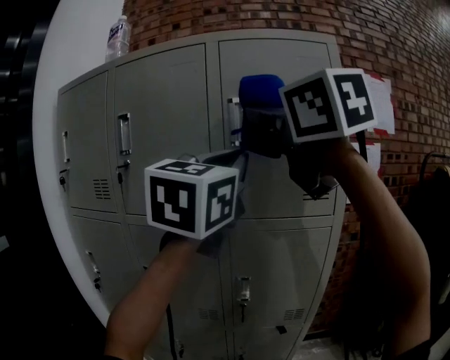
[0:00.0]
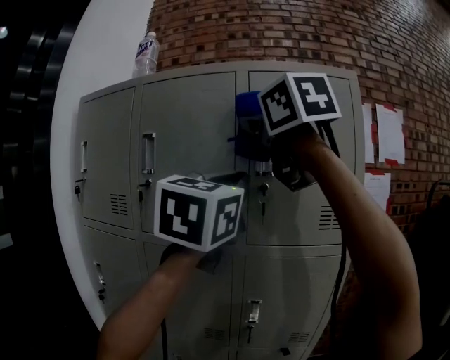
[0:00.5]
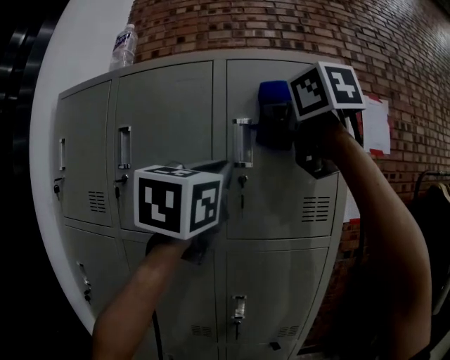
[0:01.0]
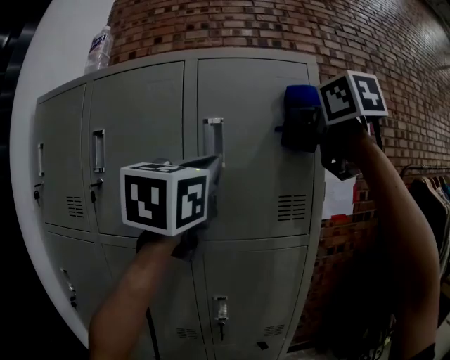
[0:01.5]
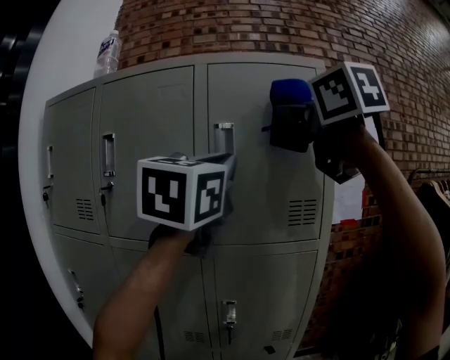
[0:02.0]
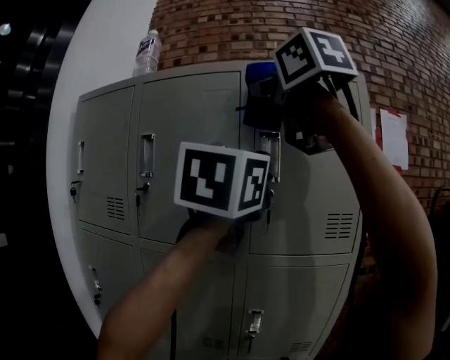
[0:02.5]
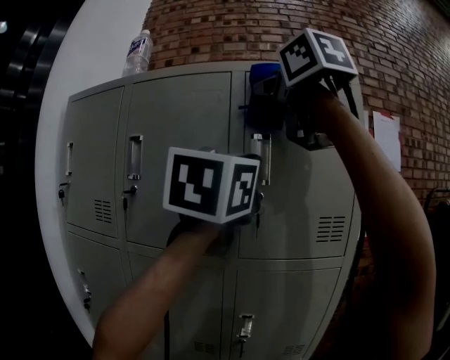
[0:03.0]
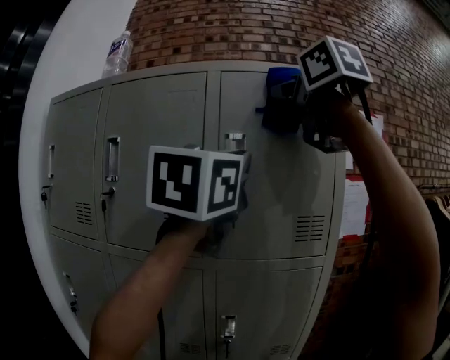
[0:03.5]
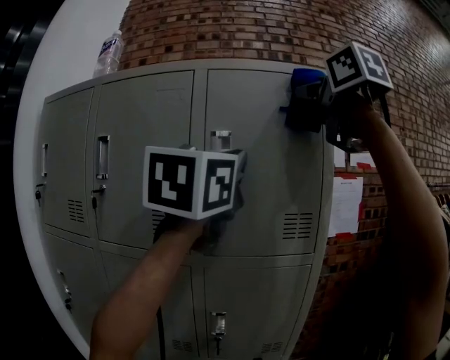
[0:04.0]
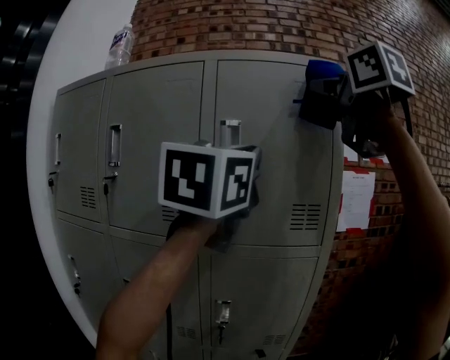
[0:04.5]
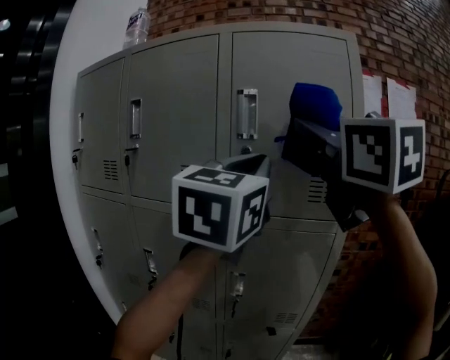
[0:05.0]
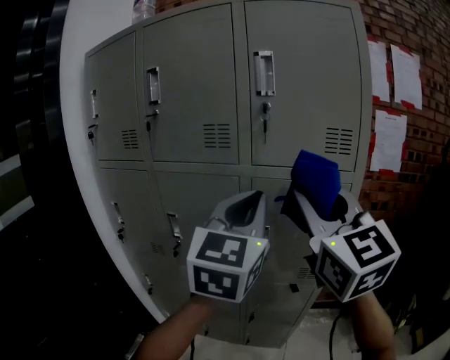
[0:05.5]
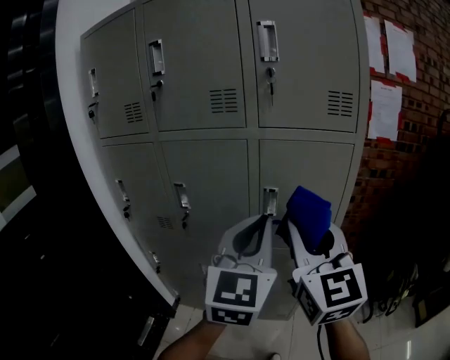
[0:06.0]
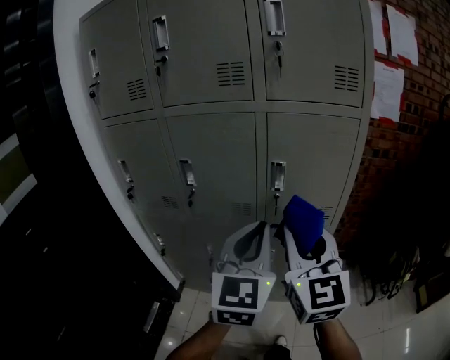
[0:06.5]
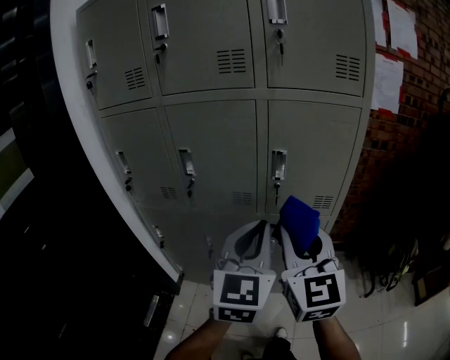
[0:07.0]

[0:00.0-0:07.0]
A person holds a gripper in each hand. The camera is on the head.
0:00.0 to 0:02.0: The right gripper moves left and right over about 20 cm, changing direction 2 times.
0:02.0 to 0:03.5: The right gripper goes about 5 cm upward, and moves some 15 cm to the left and comes back.
0:03.5 to 0:05.0: The left gripper heads downward, covering roughly 10 cm; the right gripper is displaced downward and backward by roughly 15 cm.
0:05.0 to 0:07.0: The left gripper travels downward and backward by some 35 cm; the right gripper goes about 40 cm downward.

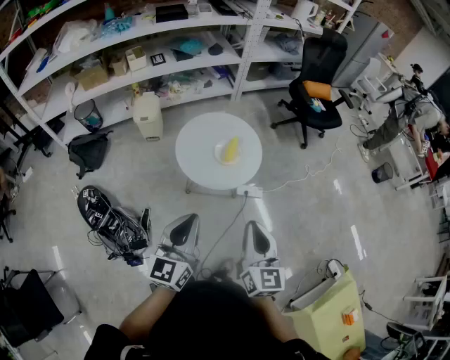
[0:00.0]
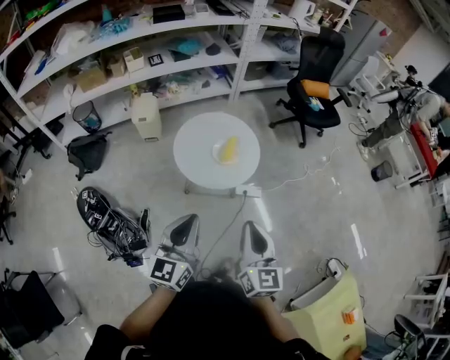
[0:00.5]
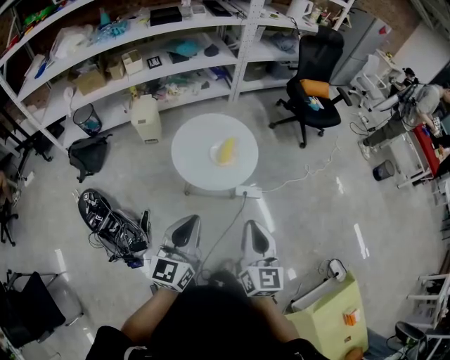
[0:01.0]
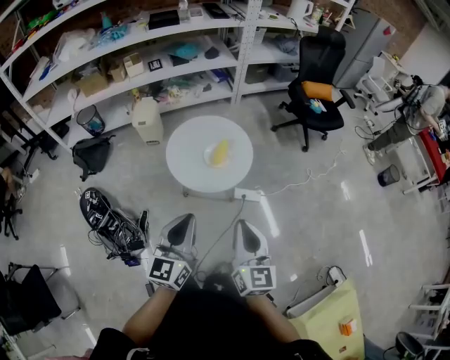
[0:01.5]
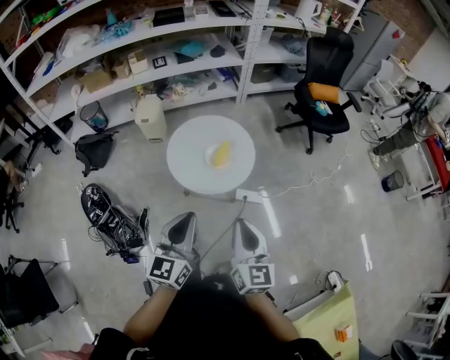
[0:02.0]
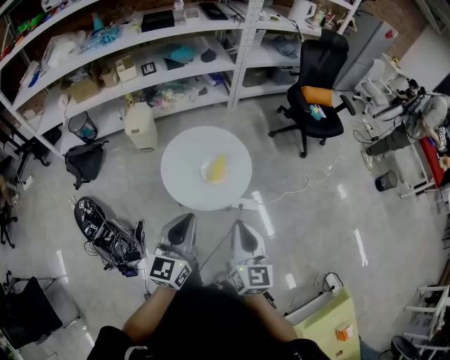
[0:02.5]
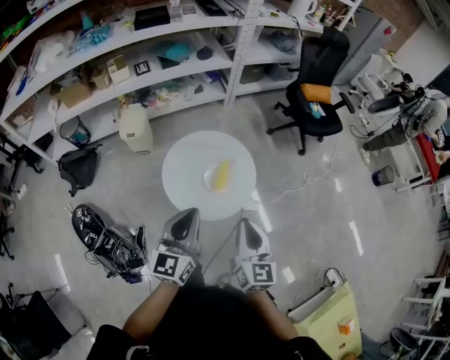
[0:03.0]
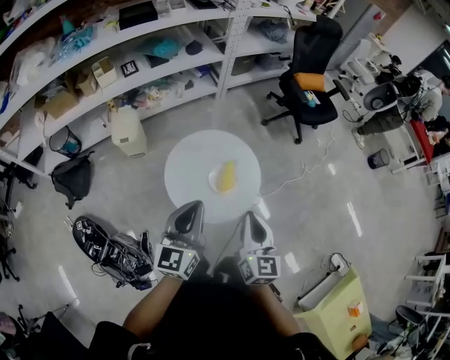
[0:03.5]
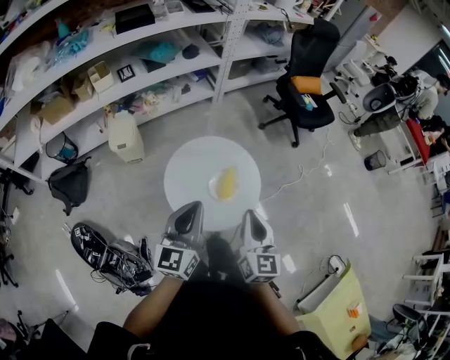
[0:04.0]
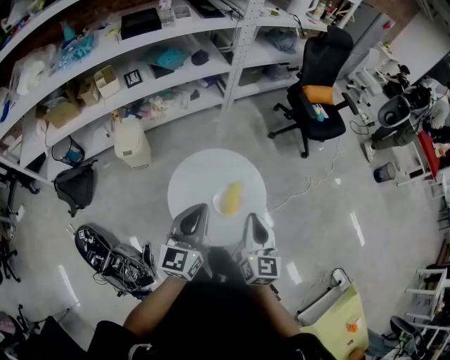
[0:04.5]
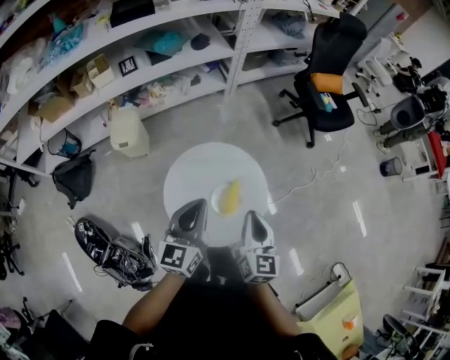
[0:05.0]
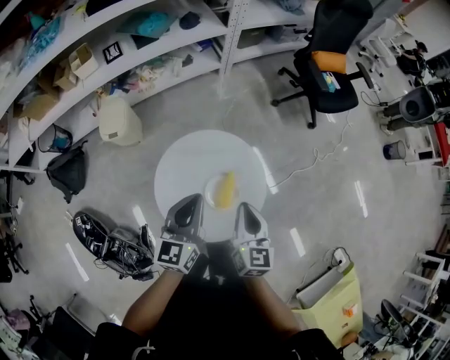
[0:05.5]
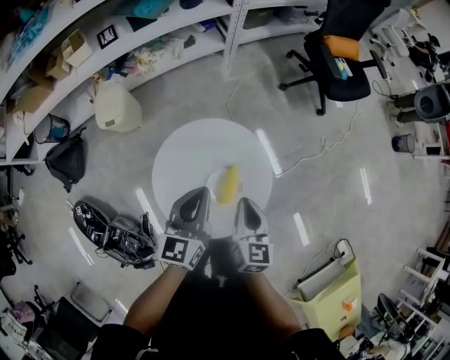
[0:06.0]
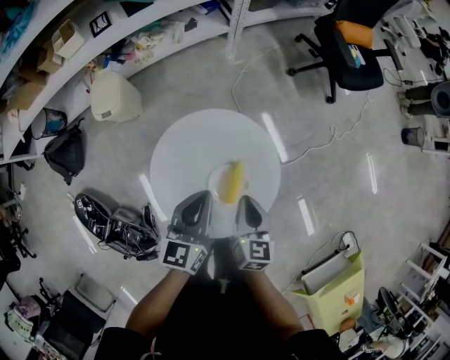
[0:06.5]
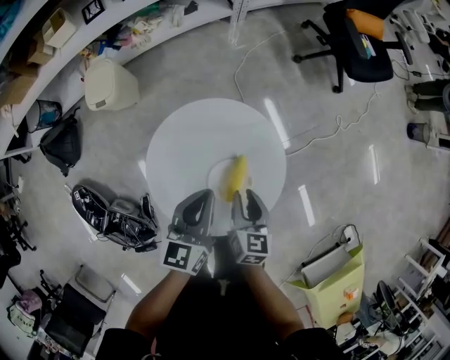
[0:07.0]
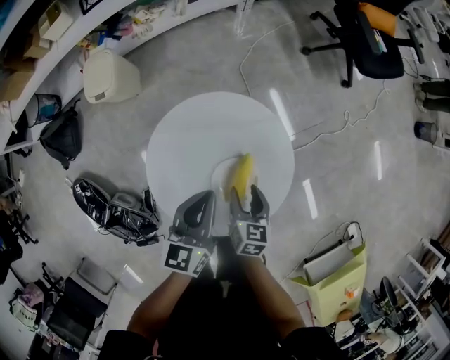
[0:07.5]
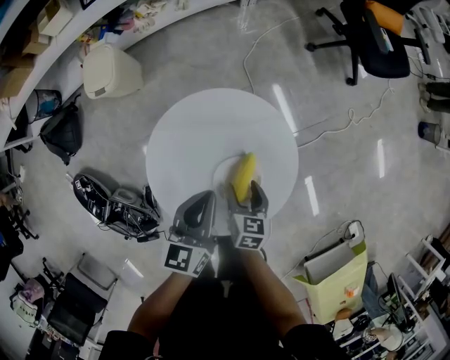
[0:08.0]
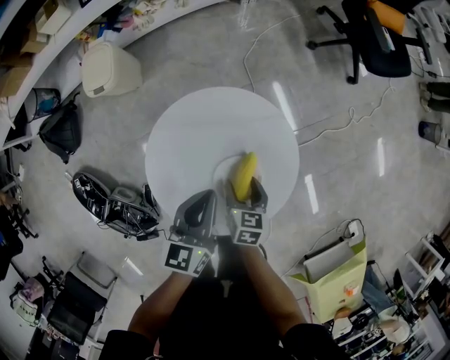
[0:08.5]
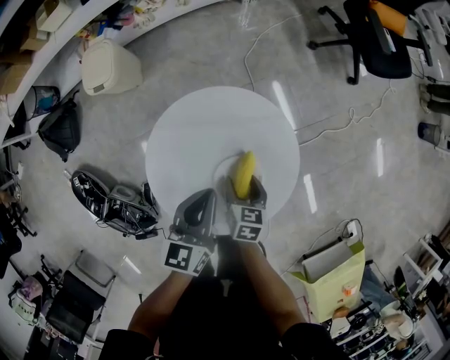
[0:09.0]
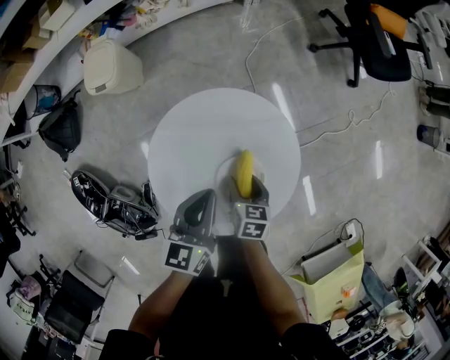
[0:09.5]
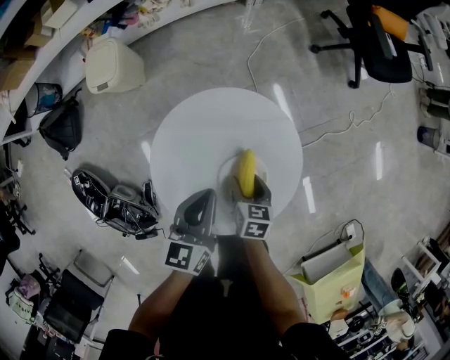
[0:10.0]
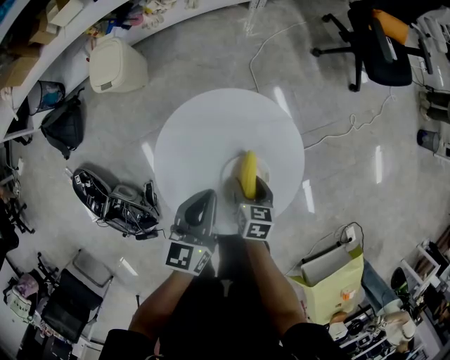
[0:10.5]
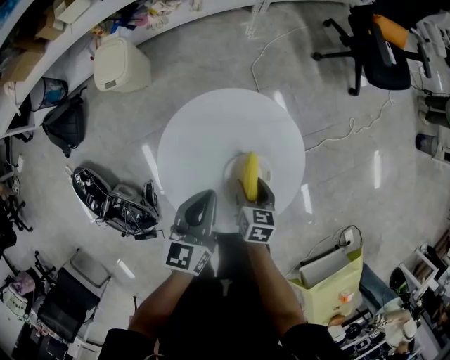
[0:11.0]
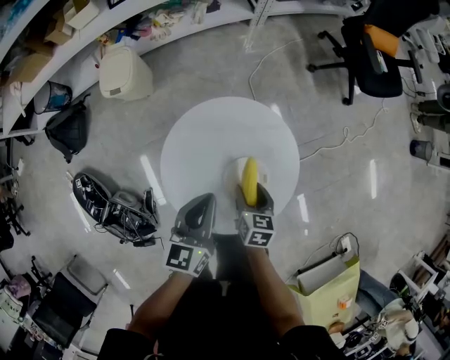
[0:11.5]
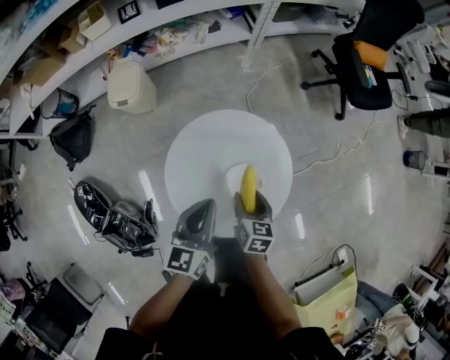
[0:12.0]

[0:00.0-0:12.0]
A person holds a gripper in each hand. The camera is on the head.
0:00.0 to 0:02.0: The right gripper is displaced to the right and forward by some 10 cm. The left gripper is displaced to the right by approximately 10 cm.
0:02.0 to 0:04.0: The grippers both shift forward and to the left by roughly 25 cm.
0:04.0 to 0:06.0: The left gripper moves forward and downward, about 20 cm. Meanwhile the right gripper goes some 25 cm downward and forward.
0:06.0 to 0:08.0: The left gripper goes roughly 15 cm downward; the right gripper heads downward, covering approximately 20 cm, swivels about 20 degrees, and opens up.
0:08.0 to 0:10.0: The grippers move only a little.
0:10.0 to 0:12.0: The two grippers go about 10 cm upward.

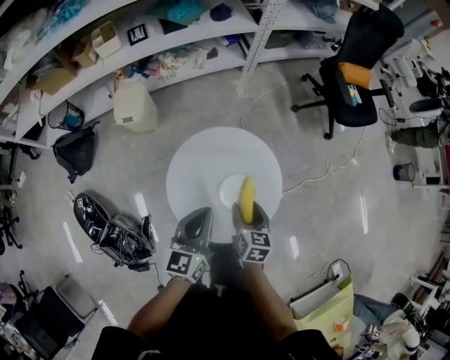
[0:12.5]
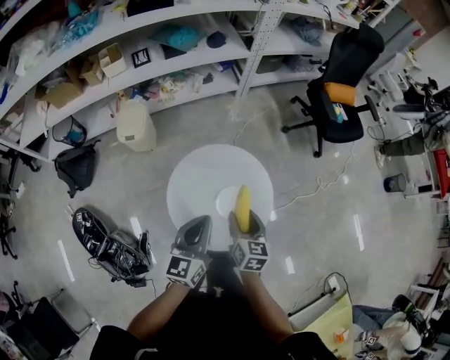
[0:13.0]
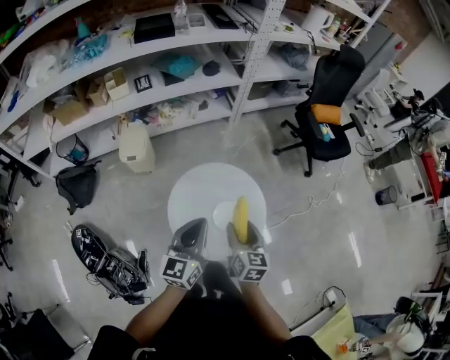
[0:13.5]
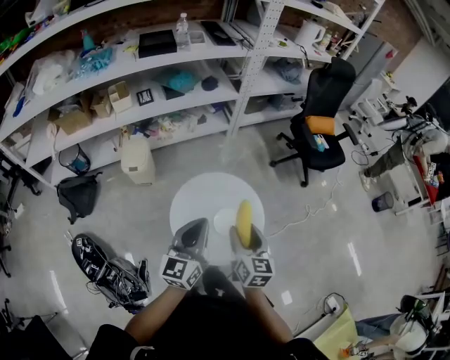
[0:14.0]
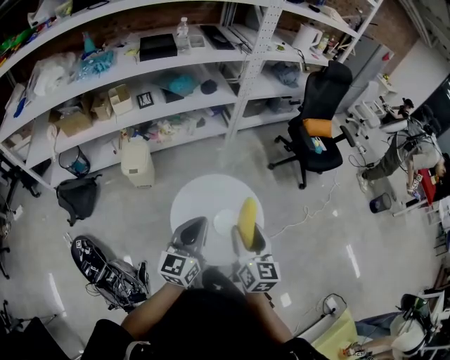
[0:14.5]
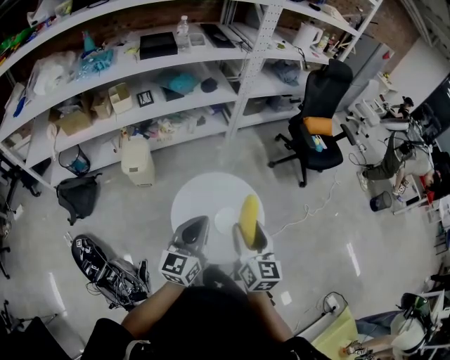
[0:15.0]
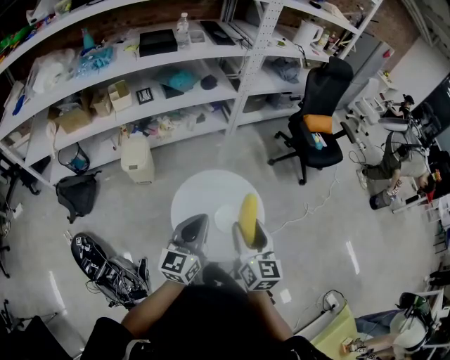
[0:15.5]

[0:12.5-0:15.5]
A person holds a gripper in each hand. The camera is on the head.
0:12.5 to 0:14.0: Both grippers travel together upward, some 15 cm. The right gripper swivels about 20 degrees.
0:14.0 to 0:15.5: The right gripper is displaced upward by about 5 cm.

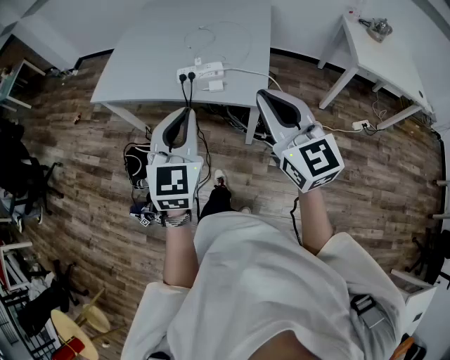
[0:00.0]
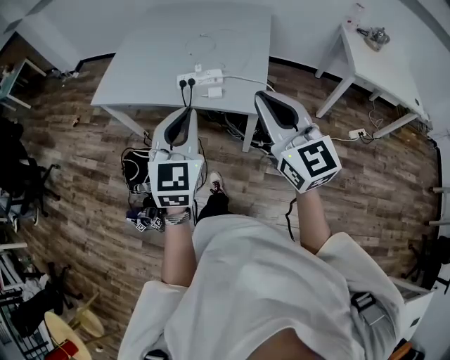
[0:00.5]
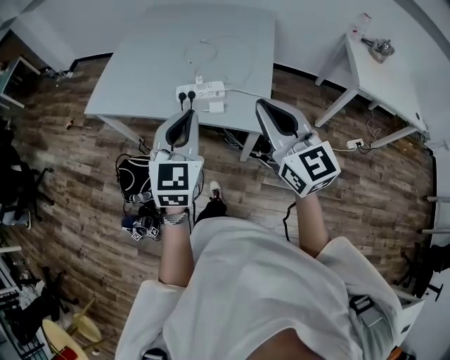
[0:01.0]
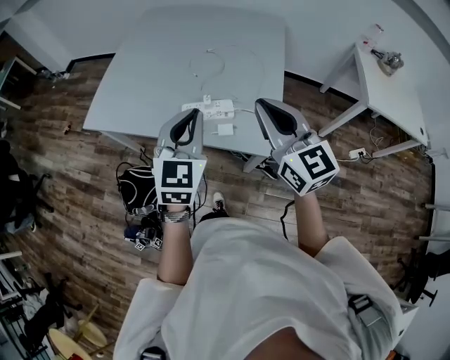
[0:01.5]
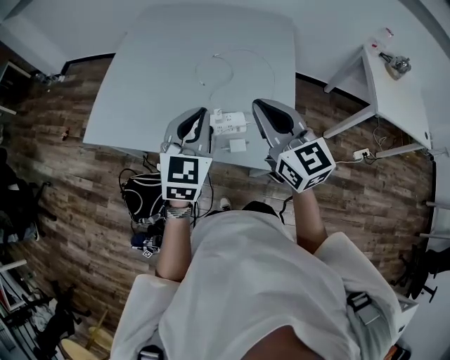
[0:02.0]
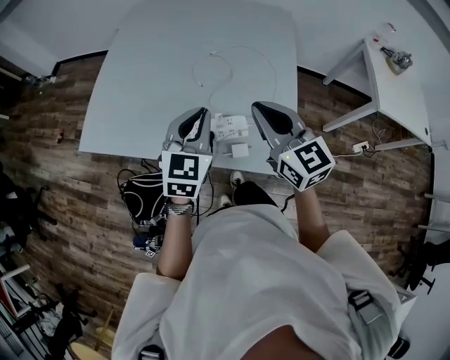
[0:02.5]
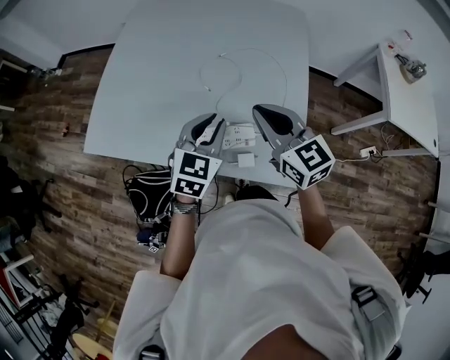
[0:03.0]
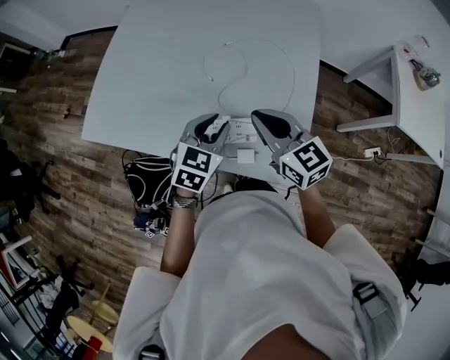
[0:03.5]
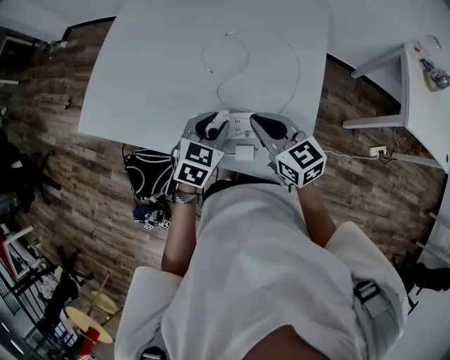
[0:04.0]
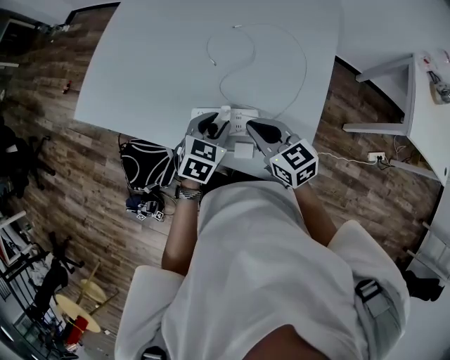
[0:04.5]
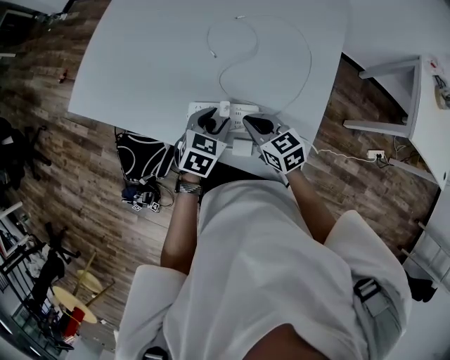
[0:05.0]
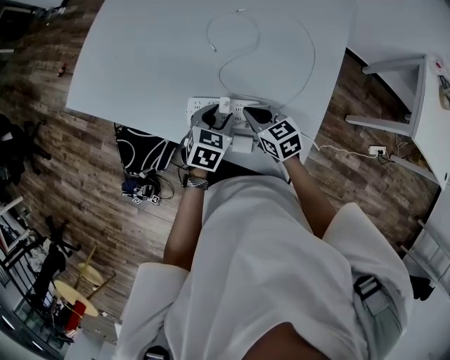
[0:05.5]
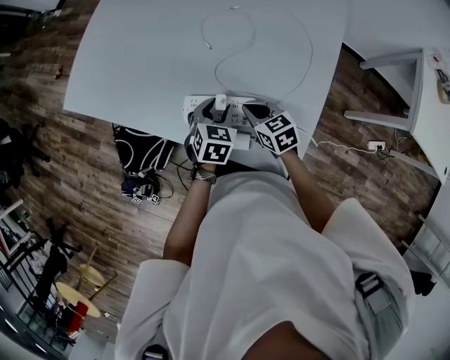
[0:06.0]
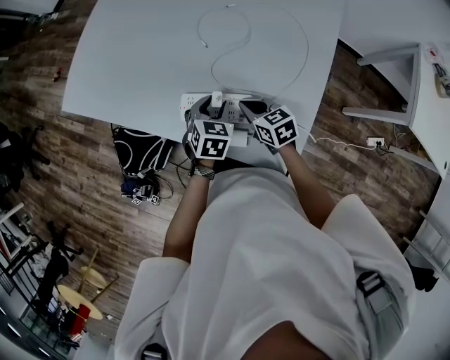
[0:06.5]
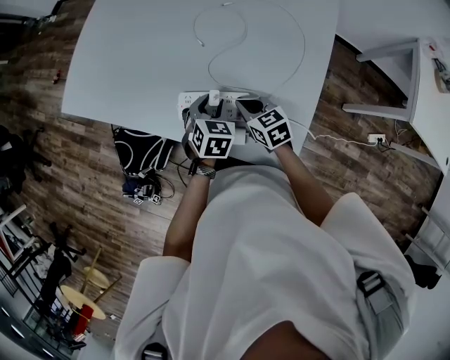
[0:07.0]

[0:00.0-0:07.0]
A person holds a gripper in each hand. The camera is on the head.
0:00.0 to 0:02.0: The grippers both shift forward by roughly 35 cm.
0:02.0 to 0:03.5: The grippers both shift downward and forward by about 15 cm. The left gripper swivels approximately 20 degrees, and opens.
0:03.5 to 0:05.0: The right gripper heads downward, covering approximately 20 cm, and changes its angle by approximately 20 degrees; the left gripper goes about 15 cm downward.
0:05.0 to 0:07.0: The right gripper shifts roughly 5 cm downward.
